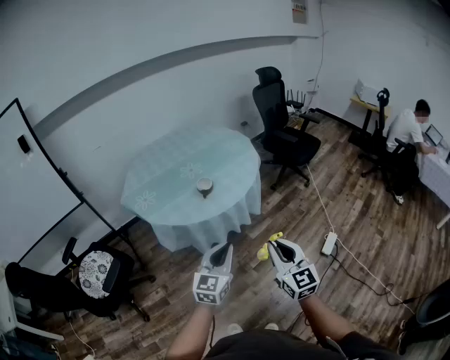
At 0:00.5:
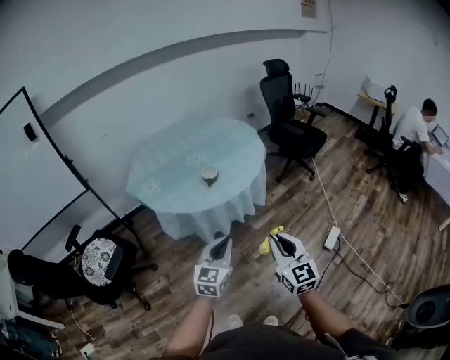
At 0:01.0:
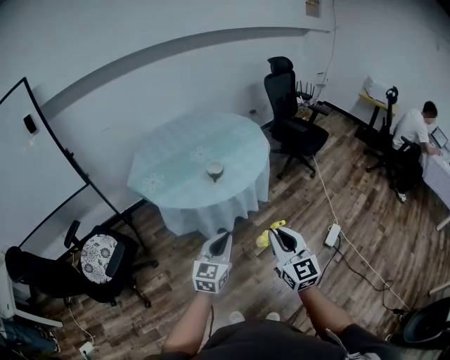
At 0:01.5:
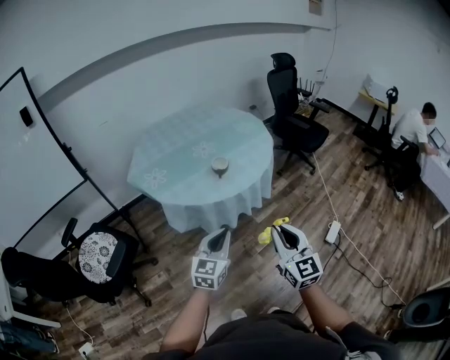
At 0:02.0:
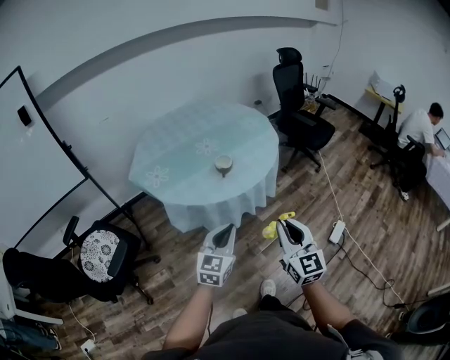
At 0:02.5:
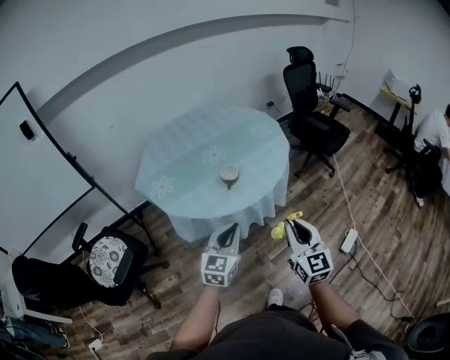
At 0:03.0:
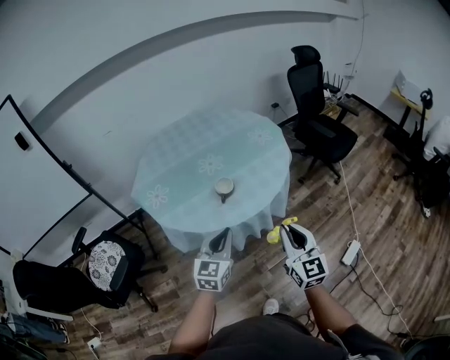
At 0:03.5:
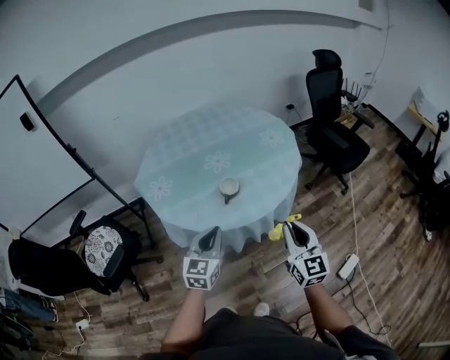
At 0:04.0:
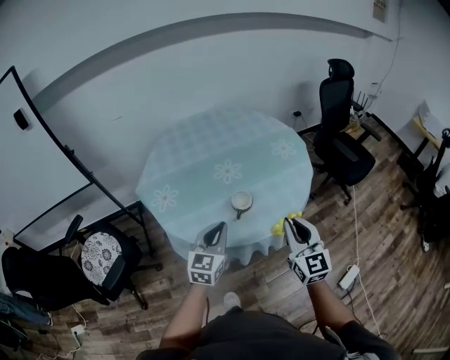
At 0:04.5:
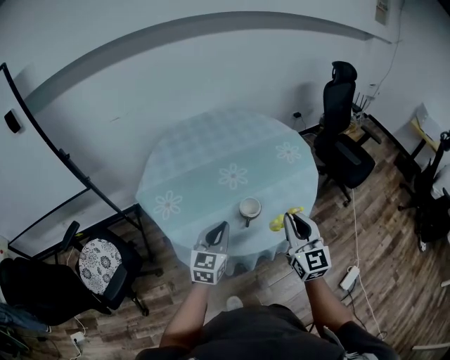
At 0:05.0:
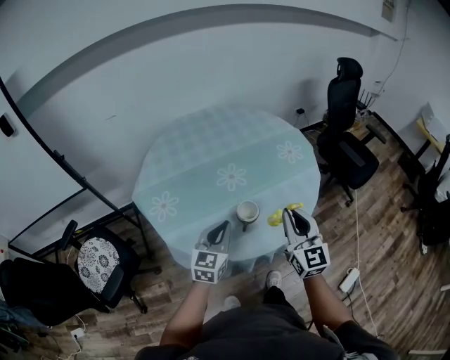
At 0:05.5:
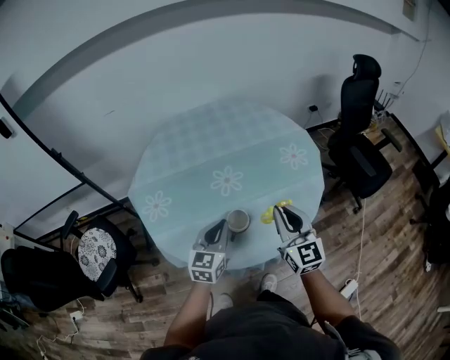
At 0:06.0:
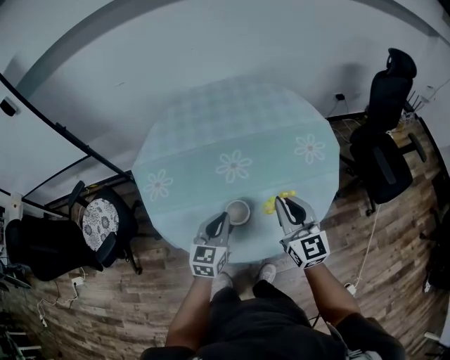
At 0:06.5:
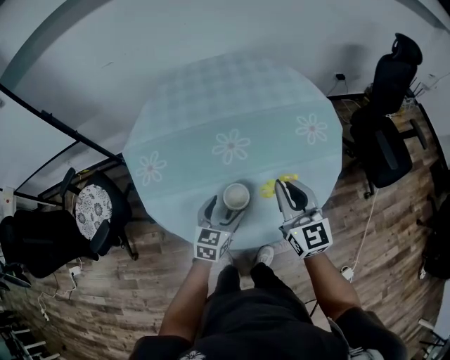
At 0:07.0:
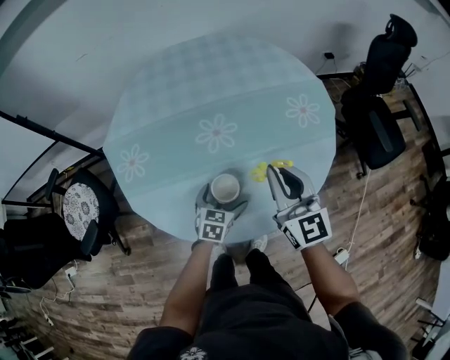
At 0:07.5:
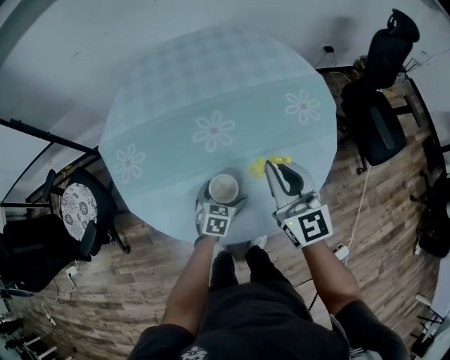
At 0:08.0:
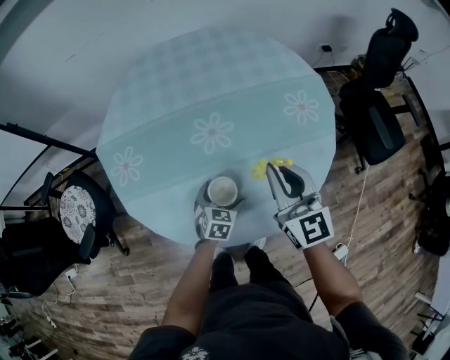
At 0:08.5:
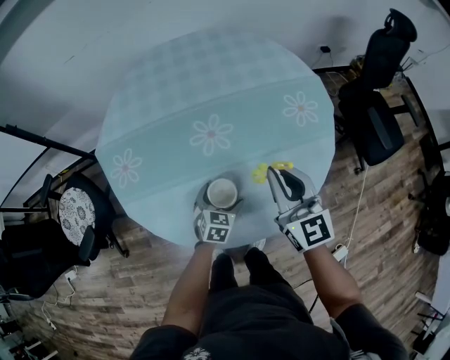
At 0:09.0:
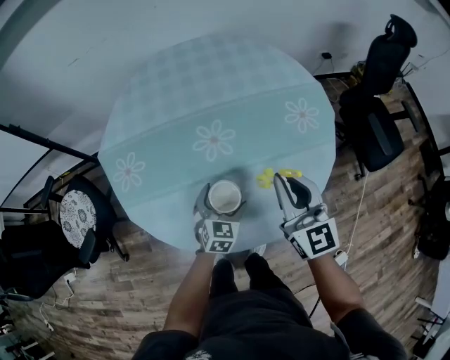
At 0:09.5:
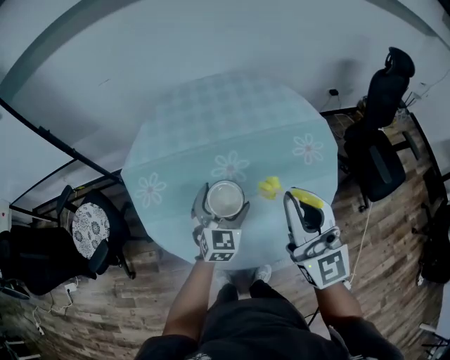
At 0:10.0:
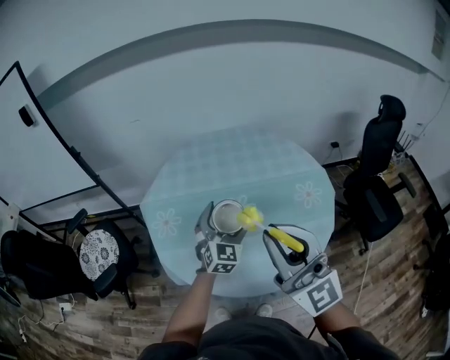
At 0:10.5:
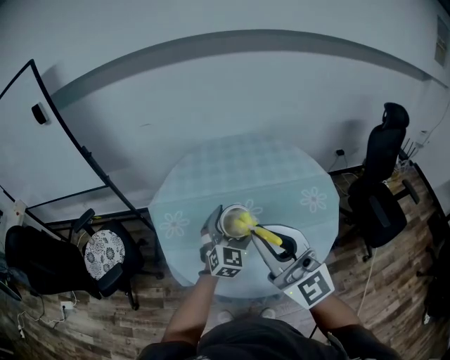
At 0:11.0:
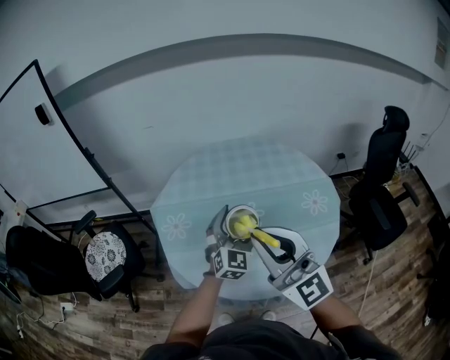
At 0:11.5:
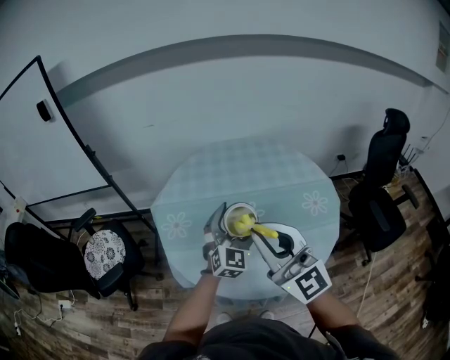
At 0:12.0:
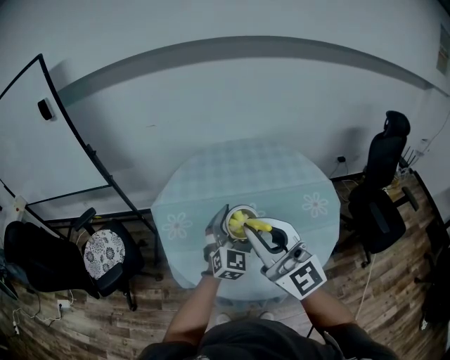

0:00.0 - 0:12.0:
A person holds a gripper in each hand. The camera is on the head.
0:00.0 - 0:02.0: The two grippers go roughly 10 cm to the left and forward.
0:02.0 - 0:04.0: The grippers both shift forward by some 35 cm.
0:04.0 - 0:06.0: The left gripper moves forward and downward, approximately 25 cm. Meanwhile the right gripper heads forward, covering some 30 cm.
0:06.0 - 0:08.0: The left gripper shifts some 20 cm downward, swivels approximately 30 degrees, and opens its fingers. Meanwhile the right gripper is displaced forward by some 5 cm.
0:08.0 - 0:10.0: The right gripper moves upward and backward, approximately 30 cm, and rotates some 30 degrees. The left gripper moves upward, approximately 30 cm, and tips its fingers upward by some 30 degrees.
0:10.0 - 0:12.0: The right gripper goes roughly 5 cm to the left, while the left gripper moves about 5 cm.

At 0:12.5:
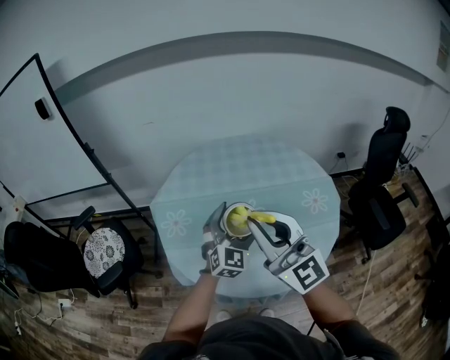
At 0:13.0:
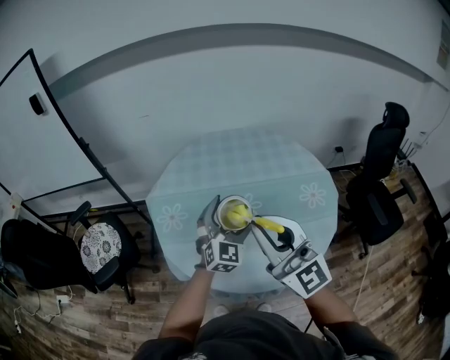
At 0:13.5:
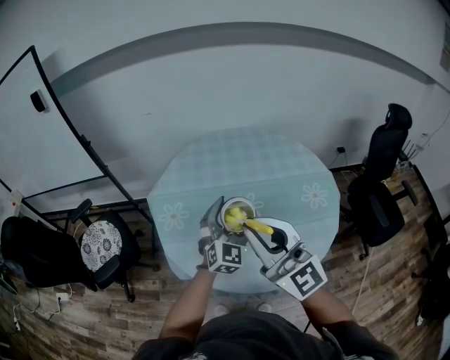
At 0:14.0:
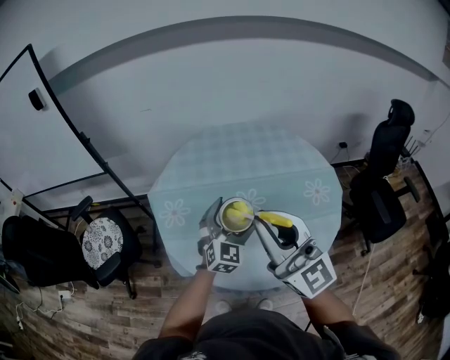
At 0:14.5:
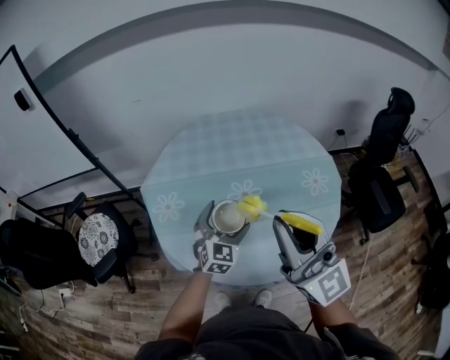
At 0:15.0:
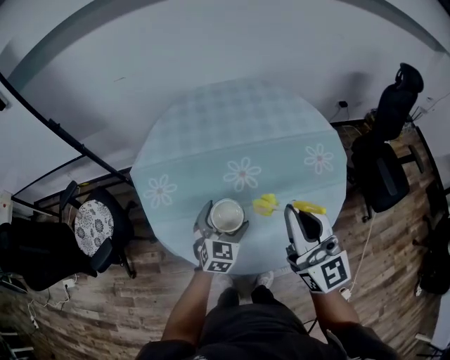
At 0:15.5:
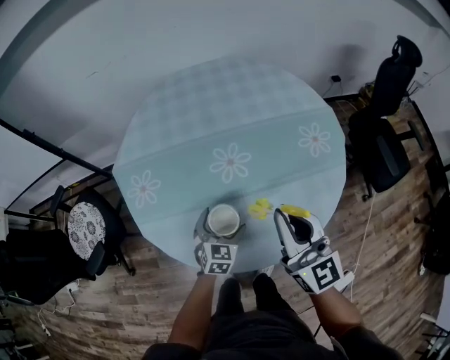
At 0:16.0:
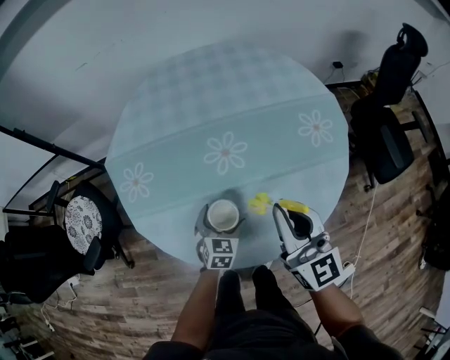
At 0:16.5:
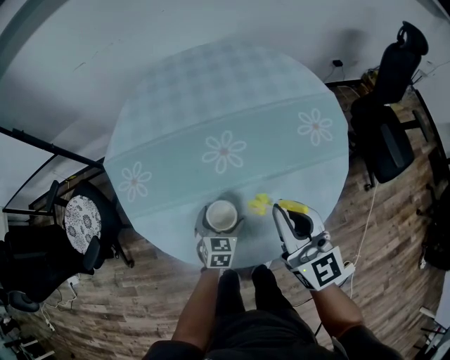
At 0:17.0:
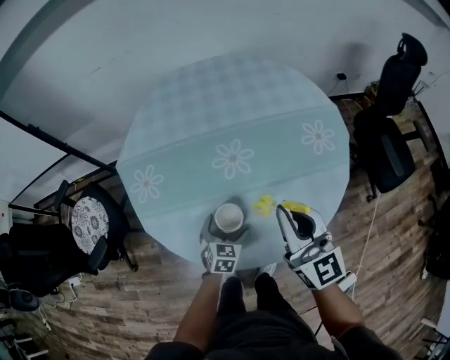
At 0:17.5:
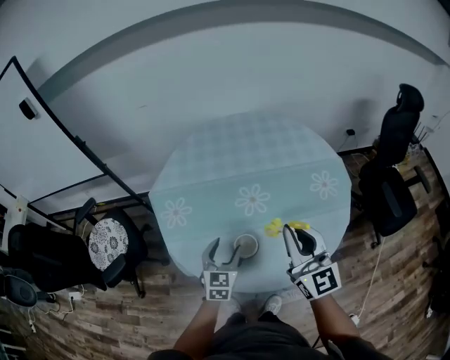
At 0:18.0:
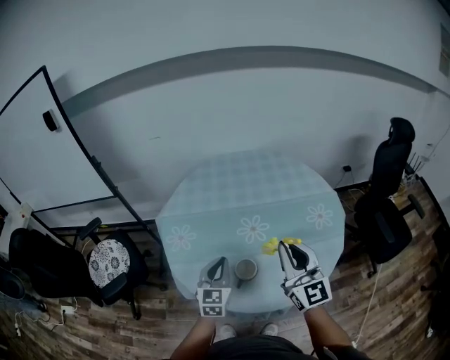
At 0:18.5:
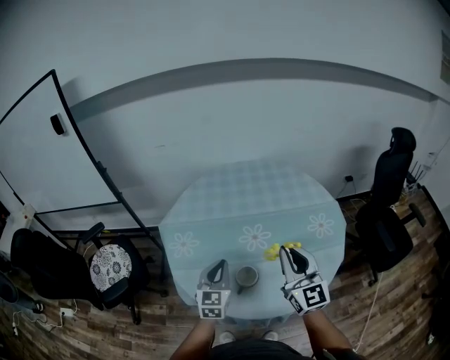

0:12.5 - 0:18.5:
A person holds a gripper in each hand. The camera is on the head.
0:12.5 - 0:14.5: The left gripper heads downward, covering some 10 cm. The right gripper travels to the right by approximately 5 cm.
0:14.5 - 0:16.5: Both grippers move downward, about 25 cm. The right gripper turns by approximately 30 degrees; the left gripper turns by some 30 degrees.
0:16.5 - 0:18.5: The left gripper travels upward by some 30 cm, changes its angle by some 30 degrees, and closes its fingers; the right gripper travels upward and backward by about 15 cm.

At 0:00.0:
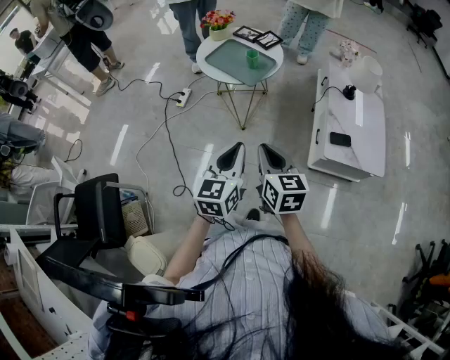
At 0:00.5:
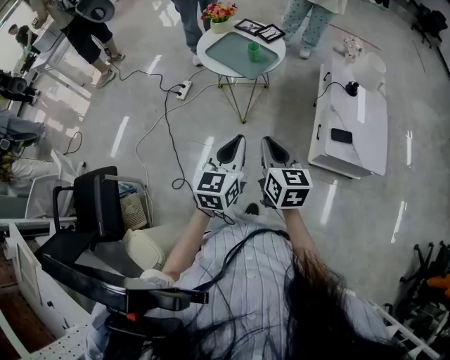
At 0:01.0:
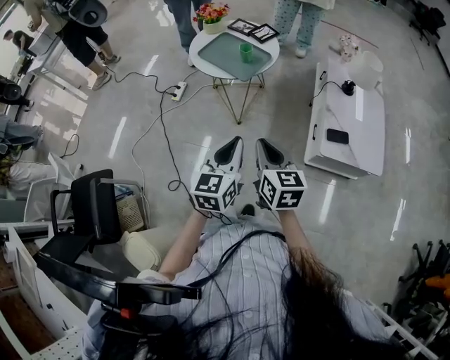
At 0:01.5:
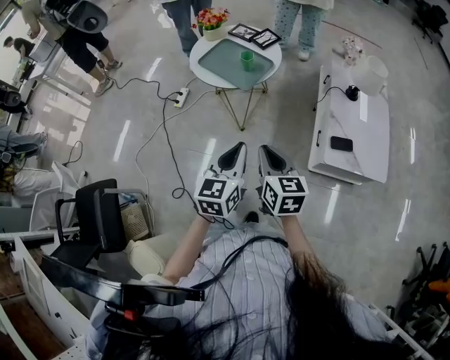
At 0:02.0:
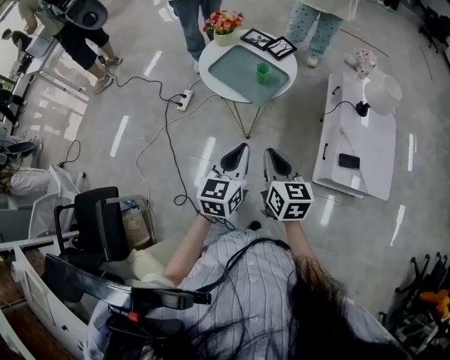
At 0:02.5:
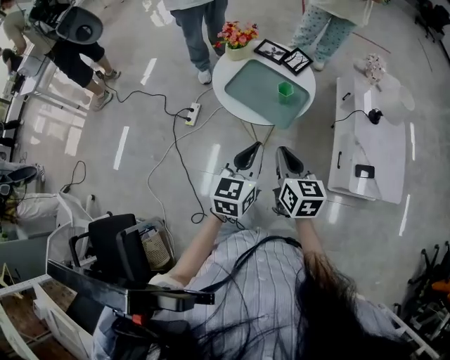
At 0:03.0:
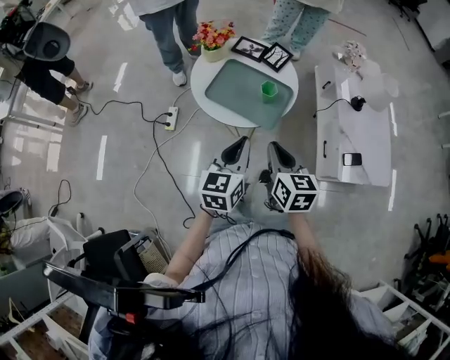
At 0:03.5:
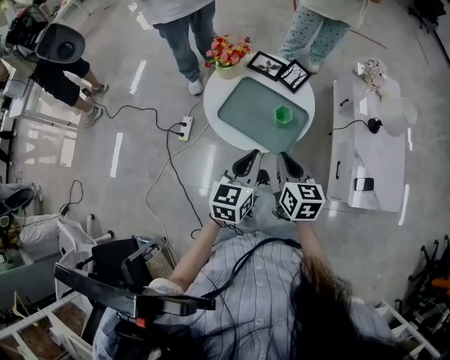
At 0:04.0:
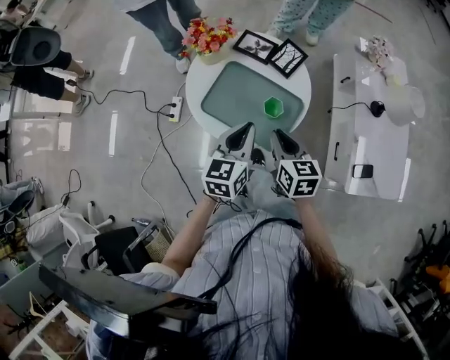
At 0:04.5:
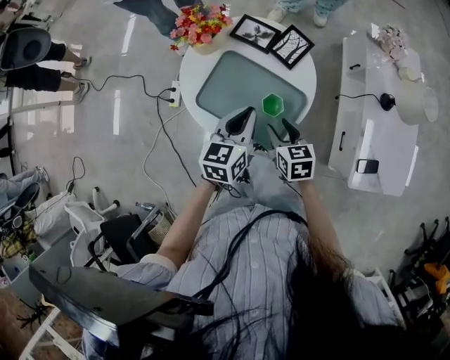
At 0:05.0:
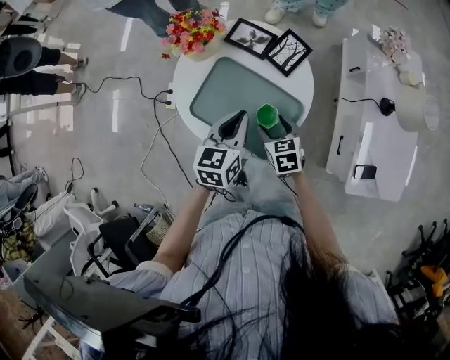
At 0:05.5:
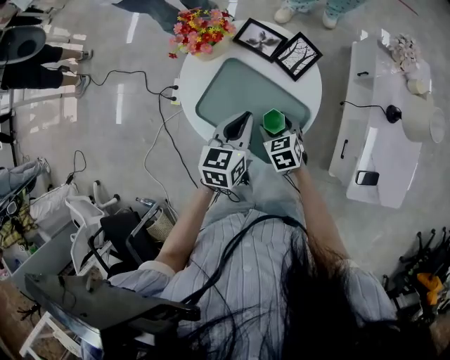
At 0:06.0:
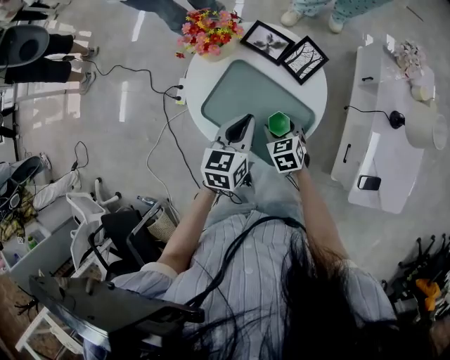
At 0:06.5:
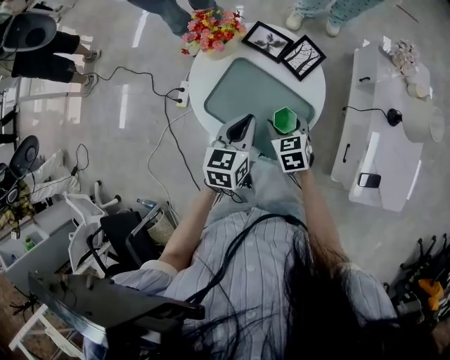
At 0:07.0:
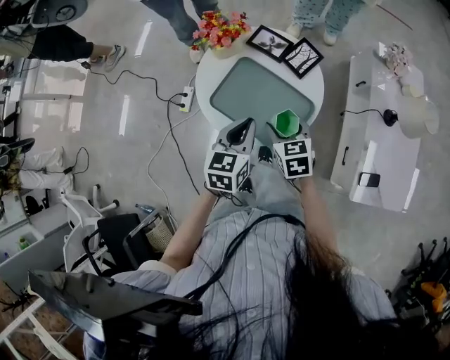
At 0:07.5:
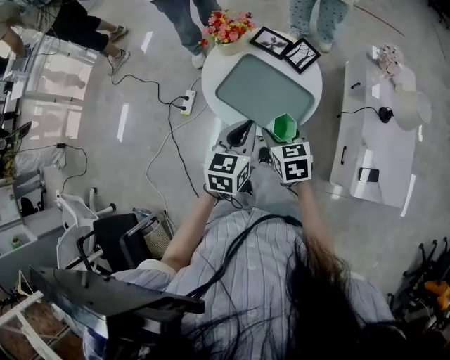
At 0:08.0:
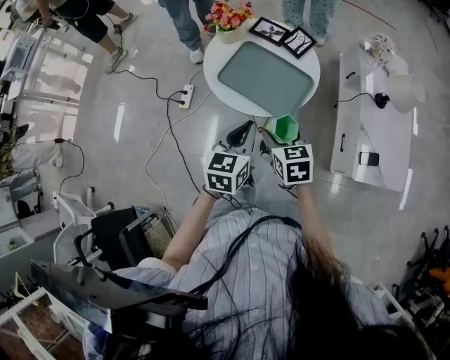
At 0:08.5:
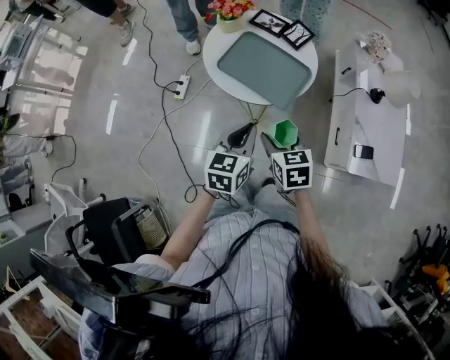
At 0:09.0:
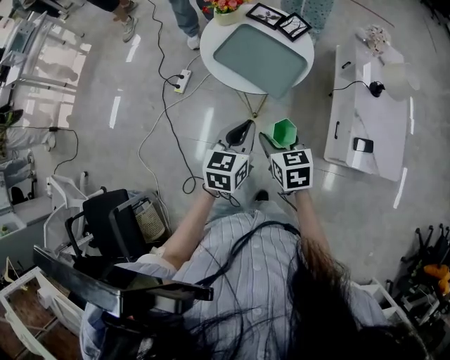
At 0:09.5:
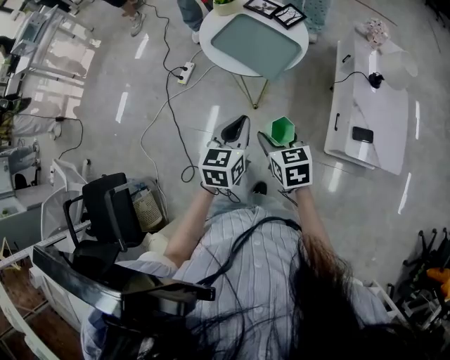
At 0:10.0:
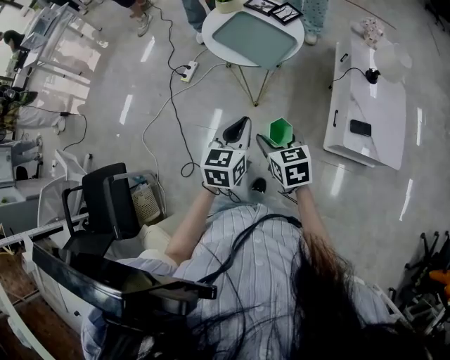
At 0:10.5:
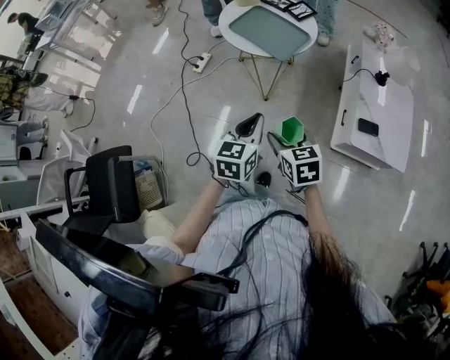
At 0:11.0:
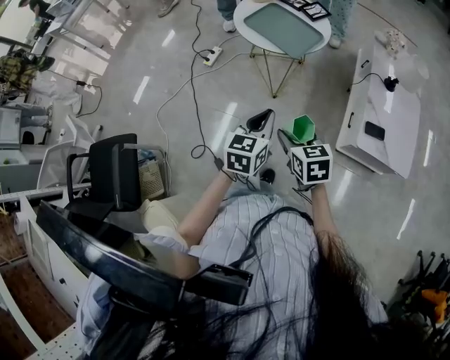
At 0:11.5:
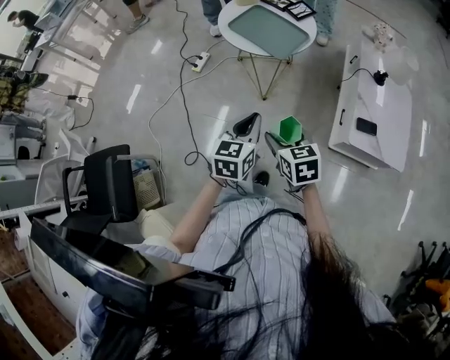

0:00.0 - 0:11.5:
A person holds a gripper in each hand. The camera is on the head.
0:00.0 - 0:02.0: Both grippers travel together forward, some 15 cm.
0:02.0 - 0:04.0: The grippers both shift forward by approximately 30 cm.
0:04.0 - 0:06.0: The right gripper goes about 20 cm downward and forward, changes its angle by some 30 degrees, and opens. Meanwhile the left gripper moves forward and downward, some 10 cm.
0:06.0 - 0:07.5: The right gripper moves upward and backward, approximately 20 cm. Meanwhile the left gripper goes about 15 cm backward and upward.
0:07.5 - 0:09.5: The two grippers go some 25 cm backward.
0:09.5 - 0:11.5: Both grippers travel together backward, about 10 cm.
